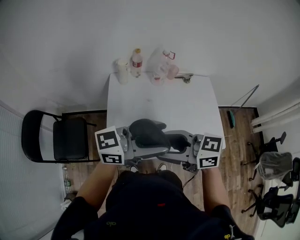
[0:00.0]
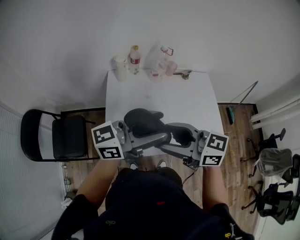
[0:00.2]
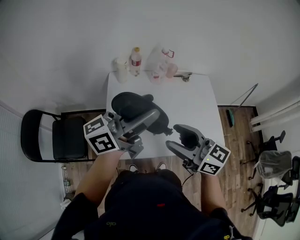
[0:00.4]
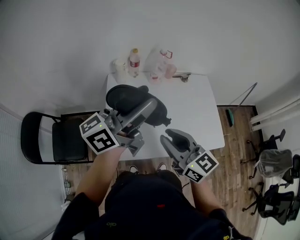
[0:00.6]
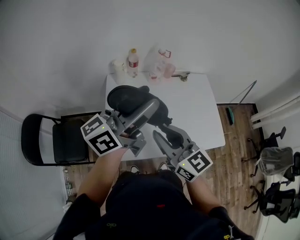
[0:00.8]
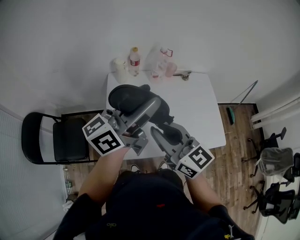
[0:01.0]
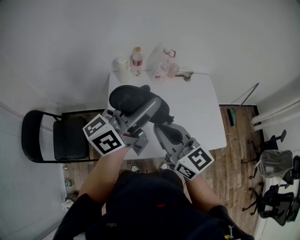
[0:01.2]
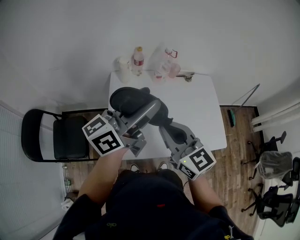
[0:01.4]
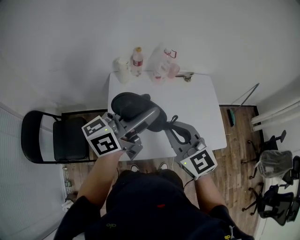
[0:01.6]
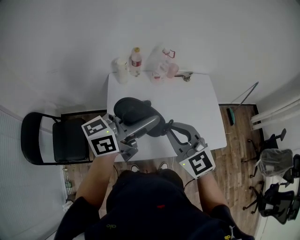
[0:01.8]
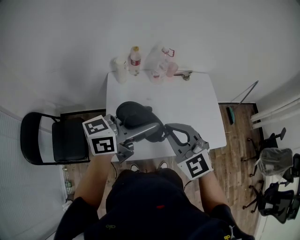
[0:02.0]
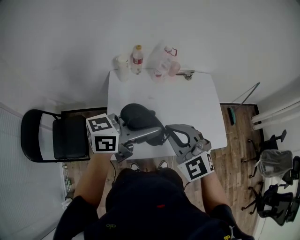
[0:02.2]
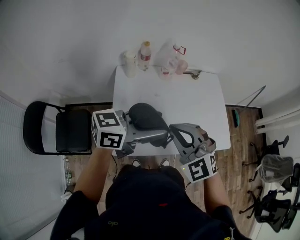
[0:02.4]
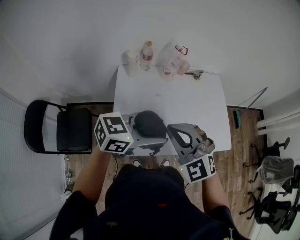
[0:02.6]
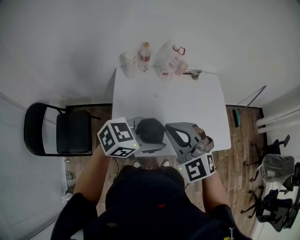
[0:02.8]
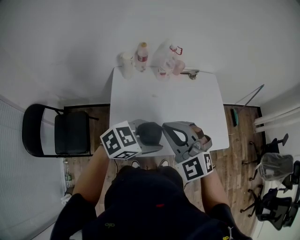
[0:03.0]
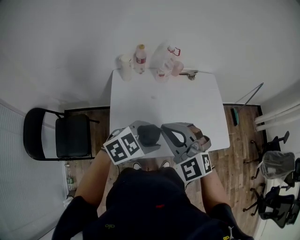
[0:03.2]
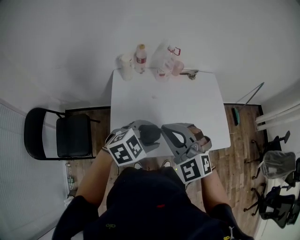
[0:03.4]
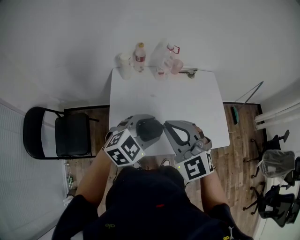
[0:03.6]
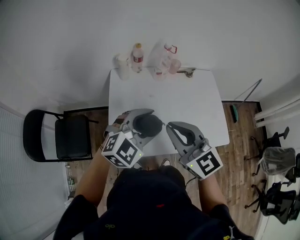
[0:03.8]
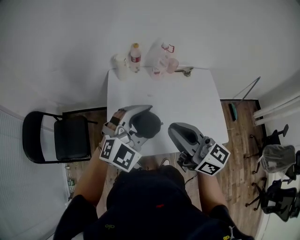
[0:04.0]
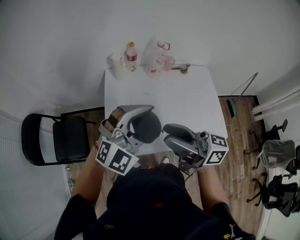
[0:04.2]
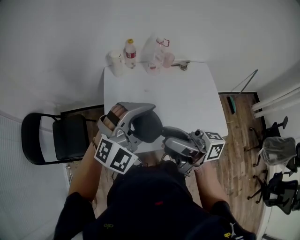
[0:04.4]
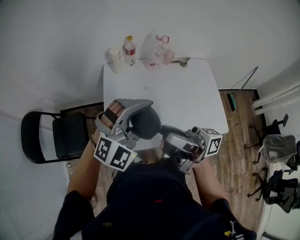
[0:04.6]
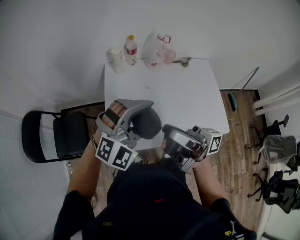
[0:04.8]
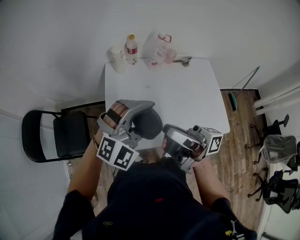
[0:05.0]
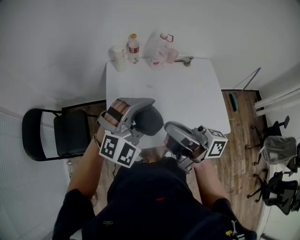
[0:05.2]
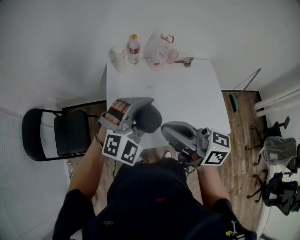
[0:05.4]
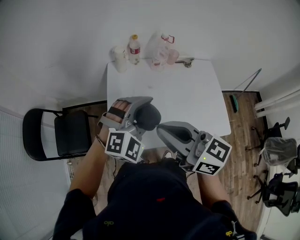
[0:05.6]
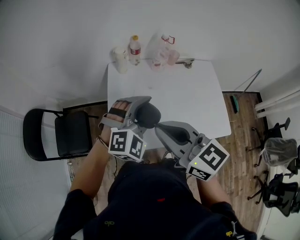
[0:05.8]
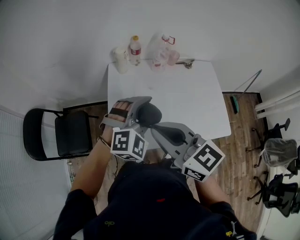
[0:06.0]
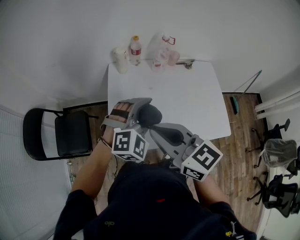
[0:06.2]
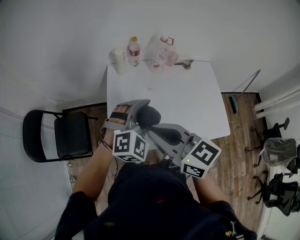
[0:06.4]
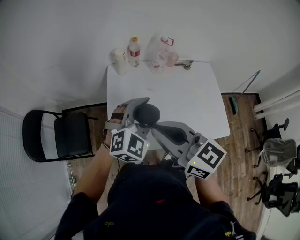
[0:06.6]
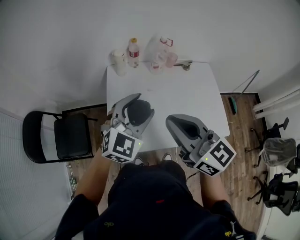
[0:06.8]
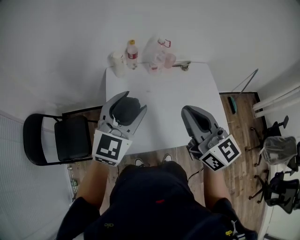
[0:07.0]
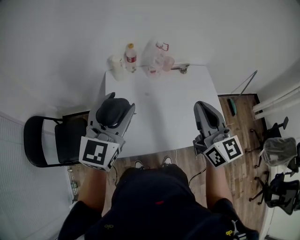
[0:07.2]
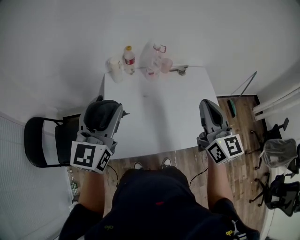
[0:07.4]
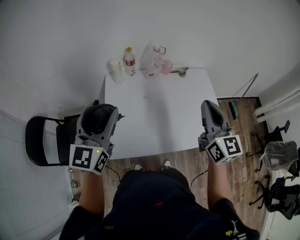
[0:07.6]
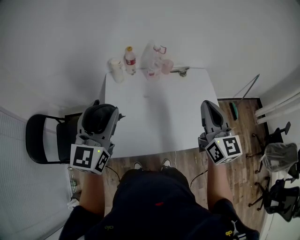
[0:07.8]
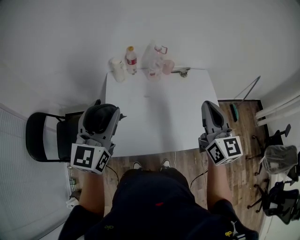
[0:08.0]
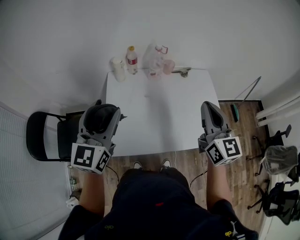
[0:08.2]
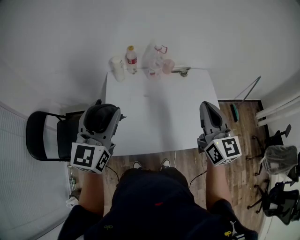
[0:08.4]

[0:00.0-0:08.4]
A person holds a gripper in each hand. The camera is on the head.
0:00.0 to 0:01.4: The right gripper moves about 5 cm, changes its angle by about 40 degrees, and closes its fingers. The left gripper ends up roughly 15 cm from where it was, and swivels roughly 30 degrees.
0:01.4 to 0:02.8: The right gripper rotates around the line of its fingers by some 40 degrees, counterclockwise from behind. The left gripper travels downward, backward and to the right by some 20 cm, and angles its fingers downward, by roughly 40 degrees.
0:02.8 to 0:04.2: The left gripper travels upward by some 5 cm, and rolls clockwise, seen from behind, by about 50 degrees. The right gripper changes place by about 5 cm, rotates around the line of its fingers by about 80 degrees, clockwise from behind, and opens its fingers.
0:04.2 to 0:05.6: The left gripper travels downward by some 5 cm; the right gripper turns by approximately 30 degrees, and closes its fingers.
0:05.6 to 0:07.0: The left gripper moves upward and to the left, some 10 cm, and swivels approximately 40 degrees, while the right gripper moves to the right, some 10 cm, and rotates some 30 degrees.
0:07.0 to 0:08.4: The right gripper moves to the right, roughly 10 cm. Meanwhile the left gripper shifts by about 5 cm, and changes its angle by roughly 20 degrees.

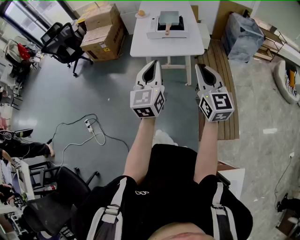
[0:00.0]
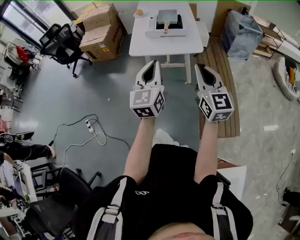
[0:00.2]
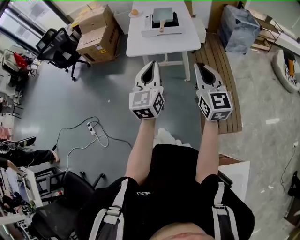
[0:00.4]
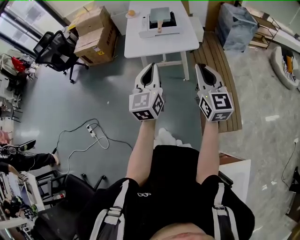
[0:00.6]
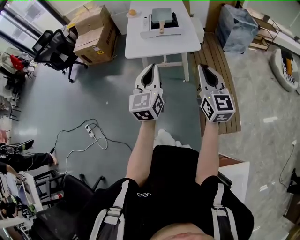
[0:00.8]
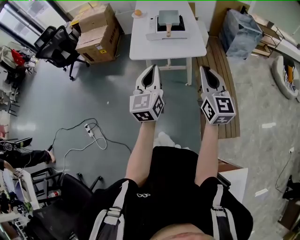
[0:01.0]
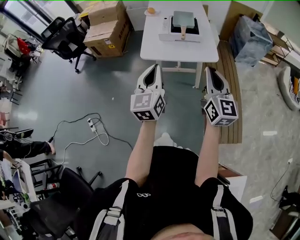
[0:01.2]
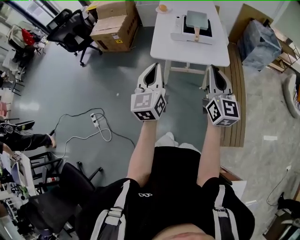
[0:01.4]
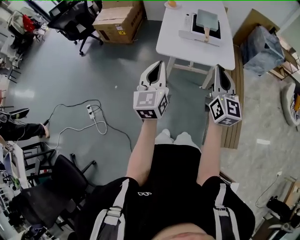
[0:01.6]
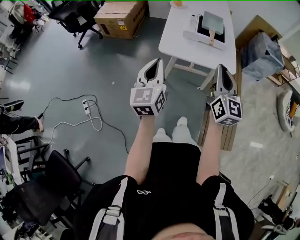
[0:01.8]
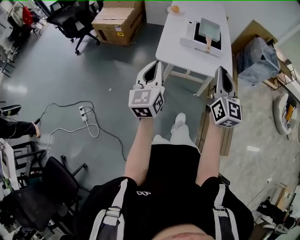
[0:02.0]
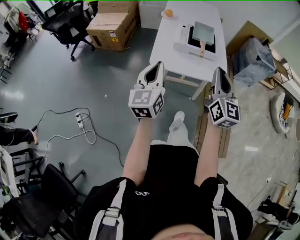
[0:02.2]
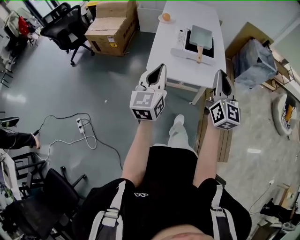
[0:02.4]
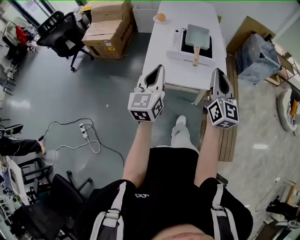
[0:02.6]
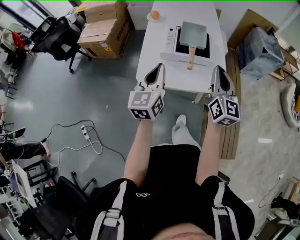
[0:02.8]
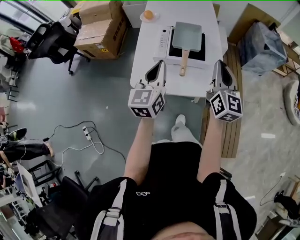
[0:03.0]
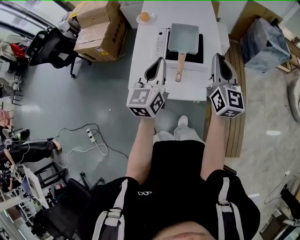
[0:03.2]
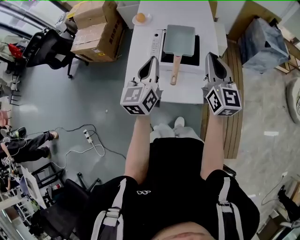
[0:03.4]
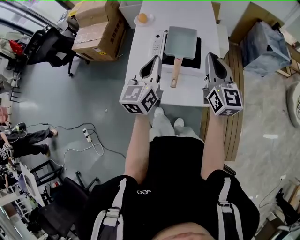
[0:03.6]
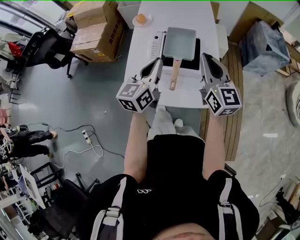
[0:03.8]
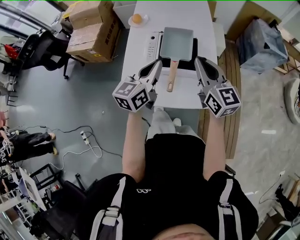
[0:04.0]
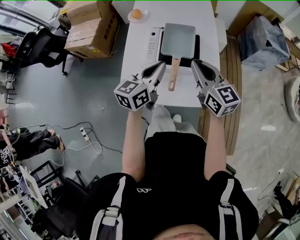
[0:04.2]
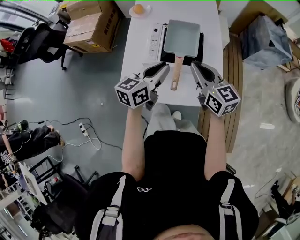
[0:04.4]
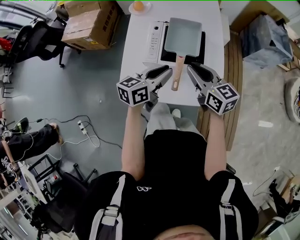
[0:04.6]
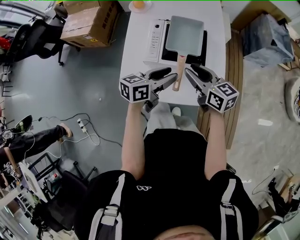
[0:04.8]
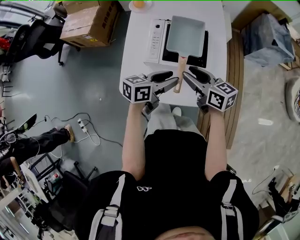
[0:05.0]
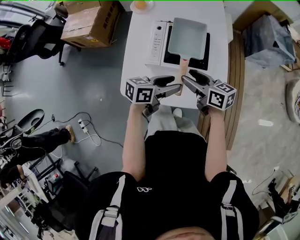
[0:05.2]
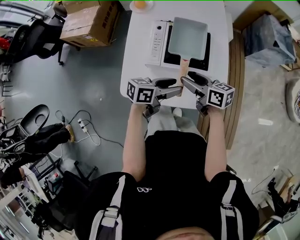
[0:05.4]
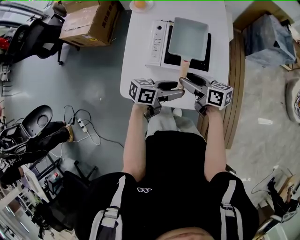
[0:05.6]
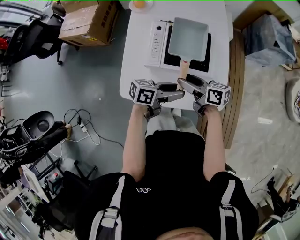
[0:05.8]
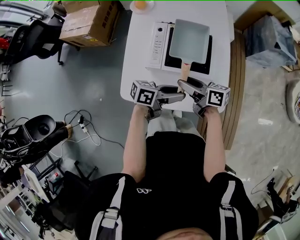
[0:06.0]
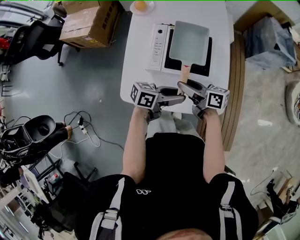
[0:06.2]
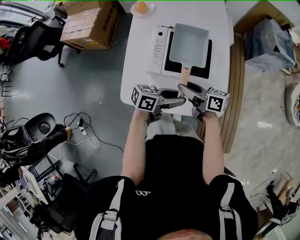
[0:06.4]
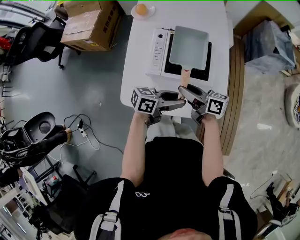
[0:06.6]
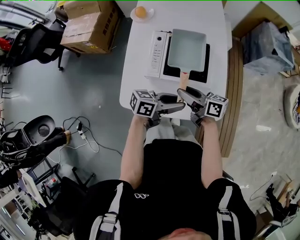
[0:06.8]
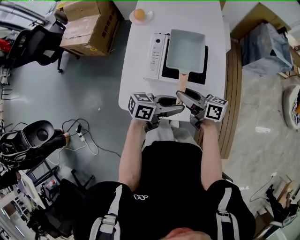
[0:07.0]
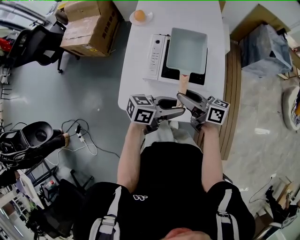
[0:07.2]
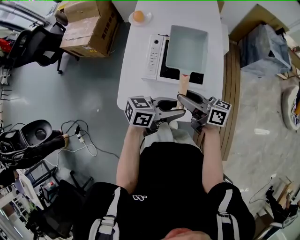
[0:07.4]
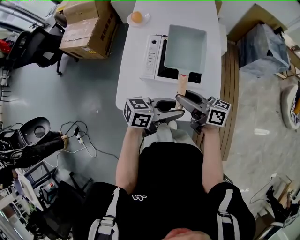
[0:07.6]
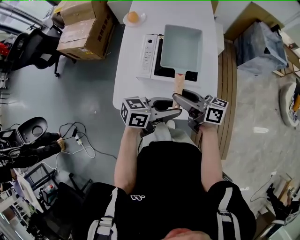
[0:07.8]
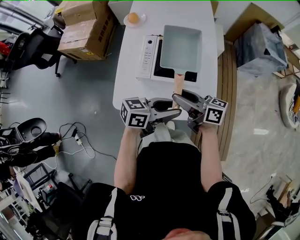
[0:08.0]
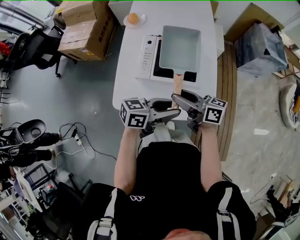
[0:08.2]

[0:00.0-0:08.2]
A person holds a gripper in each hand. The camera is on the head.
0:00.0 to 0:01.6: The left gripper travels to the left and forward by approximately 20 cm. The right gripper is displaced forward and to the left by roughly 20 cm.
0:01.6 to 0:03.2: Both grippers move forward and to the right, about 40 cm.
0:03.2 to 0:05.0: The right gripper goes approximately 20 cm downward and to the left, changes its angle by approximately 50 degrees, and opens its fingers; the left gripper goes roughly 15 cm downward, changes its angle by some 50 degrees, and opens up.
0:05.0 to 0:06.6: The left gripper shifts by roughly 5 cm, while the right gripper shifts by about 5 cm, and swivels roughly 30 degrees.
0:06.6 to 0:08.2: Both grippers move upward, roughly 5 cm.

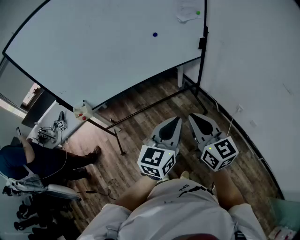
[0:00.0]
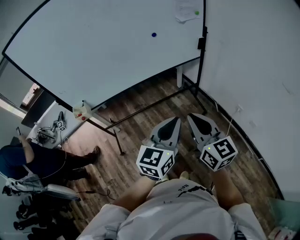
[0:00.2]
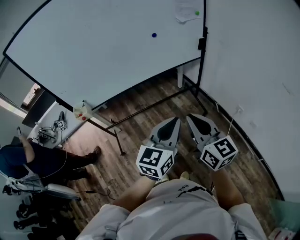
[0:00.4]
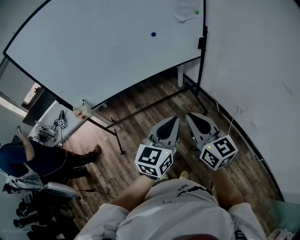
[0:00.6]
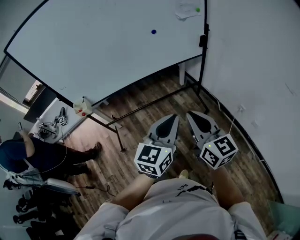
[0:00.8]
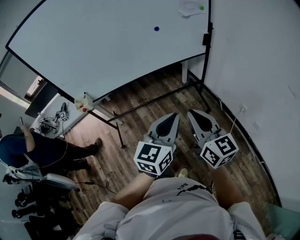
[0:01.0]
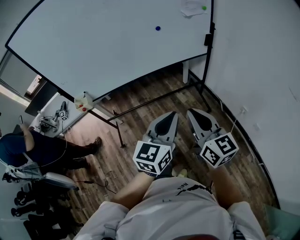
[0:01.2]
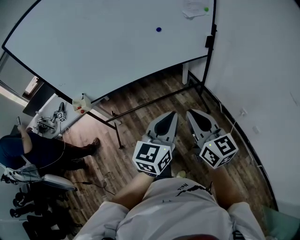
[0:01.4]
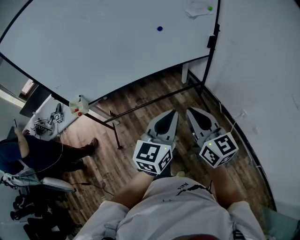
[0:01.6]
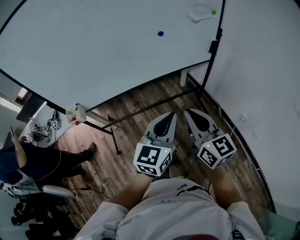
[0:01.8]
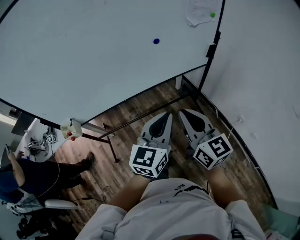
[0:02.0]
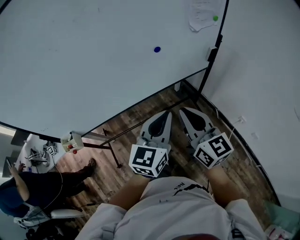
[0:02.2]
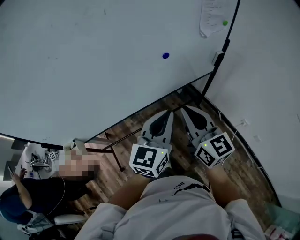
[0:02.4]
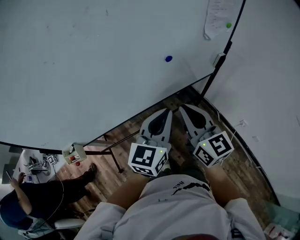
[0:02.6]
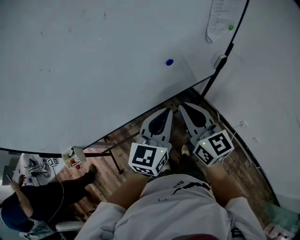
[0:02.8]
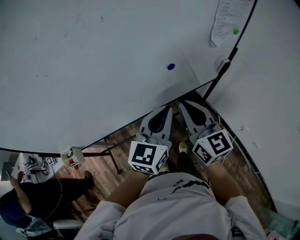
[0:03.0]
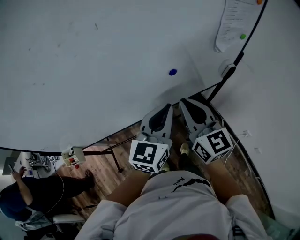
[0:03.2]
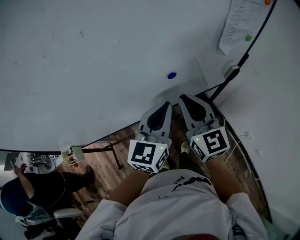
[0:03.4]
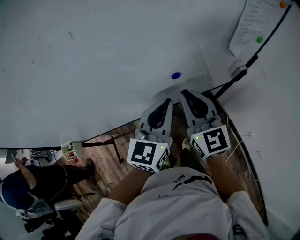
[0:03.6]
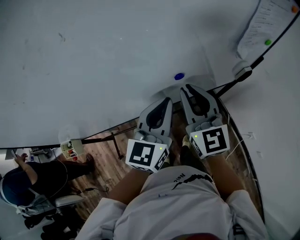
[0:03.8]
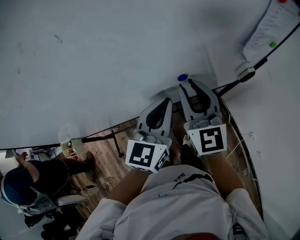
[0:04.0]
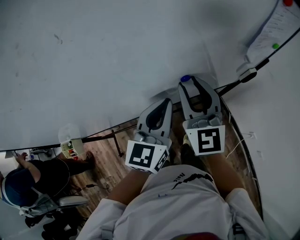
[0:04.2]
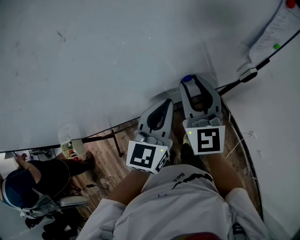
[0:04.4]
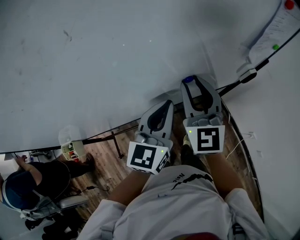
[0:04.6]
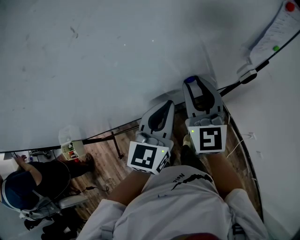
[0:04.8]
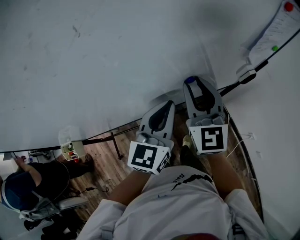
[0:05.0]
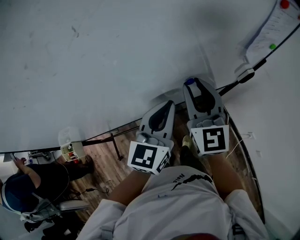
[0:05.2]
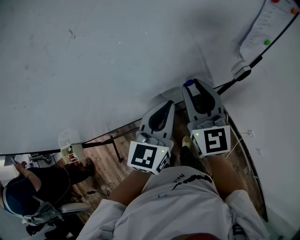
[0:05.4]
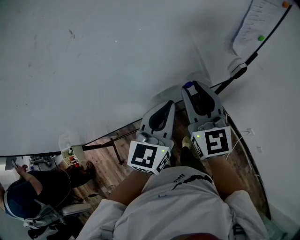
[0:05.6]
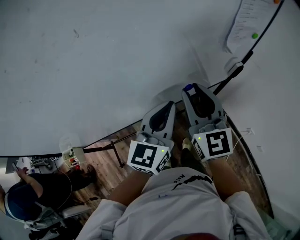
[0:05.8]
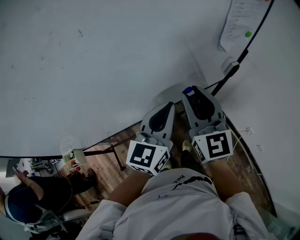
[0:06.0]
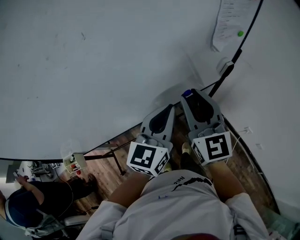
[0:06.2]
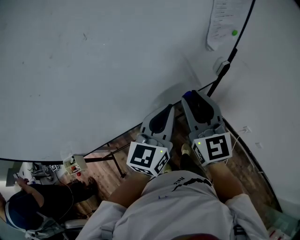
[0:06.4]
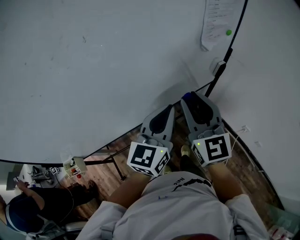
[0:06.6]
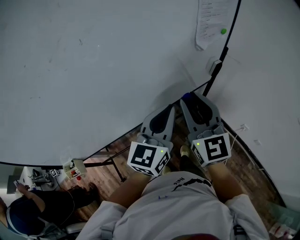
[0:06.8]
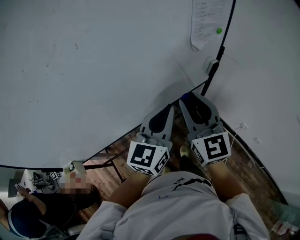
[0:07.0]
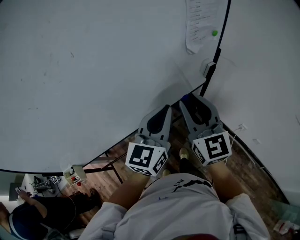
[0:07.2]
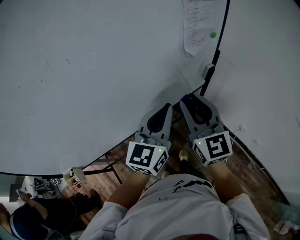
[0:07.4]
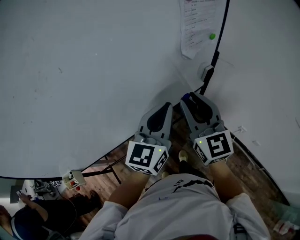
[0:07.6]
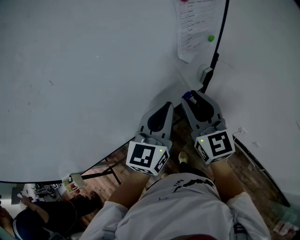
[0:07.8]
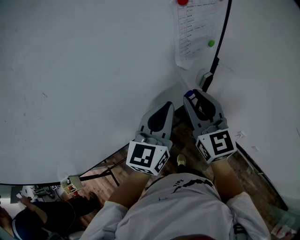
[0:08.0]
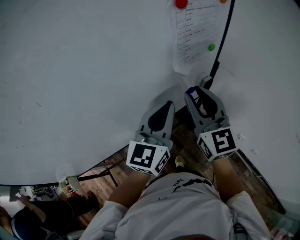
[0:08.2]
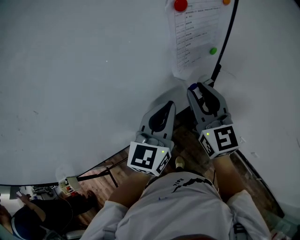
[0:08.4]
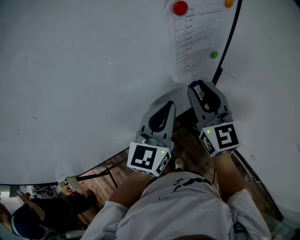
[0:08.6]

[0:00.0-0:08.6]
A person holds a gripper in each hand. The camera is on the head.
0:00.0 to 0:01.4: The grippers move only a little.
0:01.4 to 0:02.8: The two grippers go roughly 35 cm forward.
0:02.8 to 0:04.4: The two grippers go some 15 cm forward. The right gripper turns by roughly 20 degrees, and opens its fingers.
0:04.4 to 0:05.8: The right gripper moves some 5 cm.
0:05.8 to 0:07.2: The left gripper heads to the right, covering about 5 cm, while the right gripper heads to the right and backward, covering some 10 cm.
0:07.2 to 0:08.6: The two grippers go some 20 cm forward and to the right.
